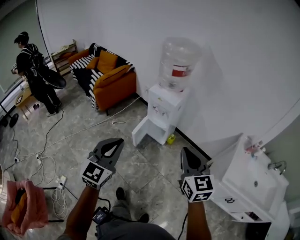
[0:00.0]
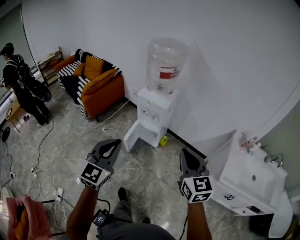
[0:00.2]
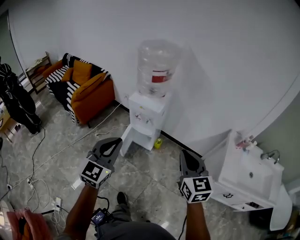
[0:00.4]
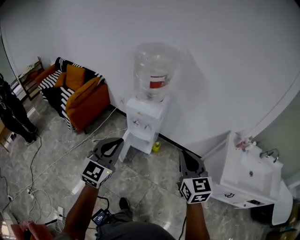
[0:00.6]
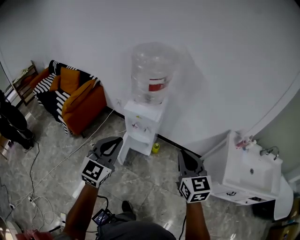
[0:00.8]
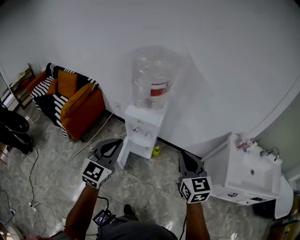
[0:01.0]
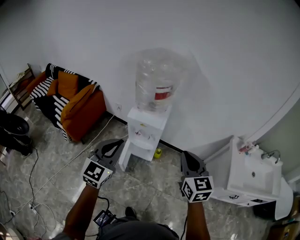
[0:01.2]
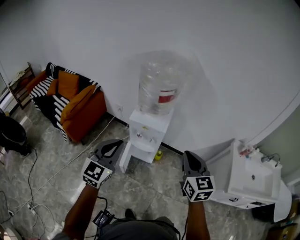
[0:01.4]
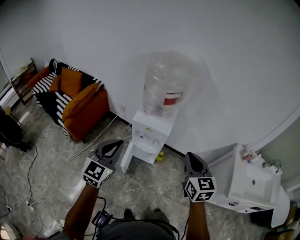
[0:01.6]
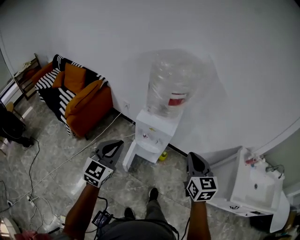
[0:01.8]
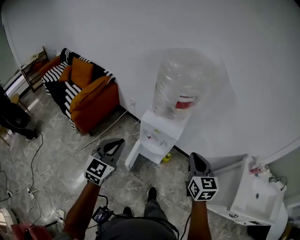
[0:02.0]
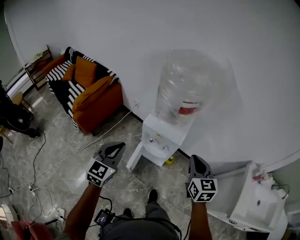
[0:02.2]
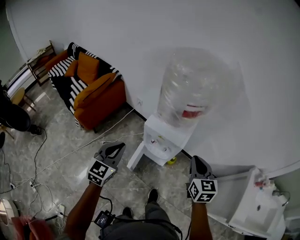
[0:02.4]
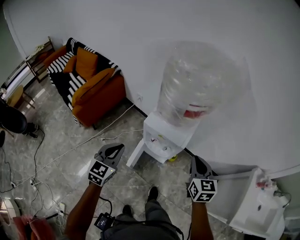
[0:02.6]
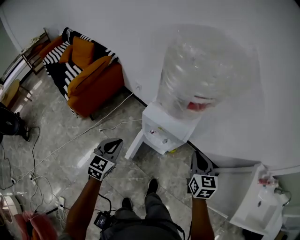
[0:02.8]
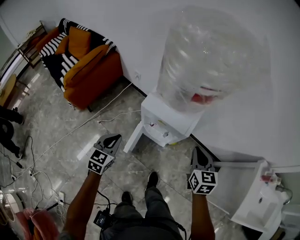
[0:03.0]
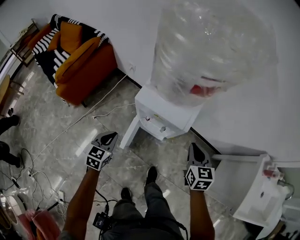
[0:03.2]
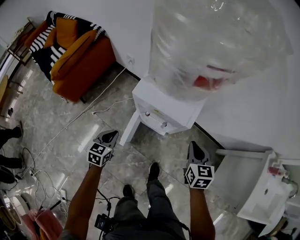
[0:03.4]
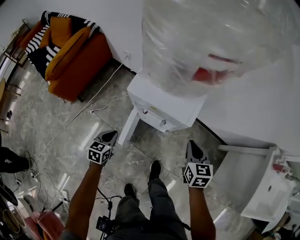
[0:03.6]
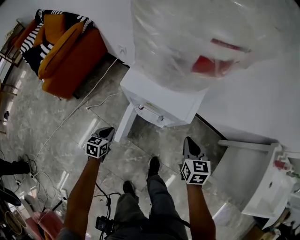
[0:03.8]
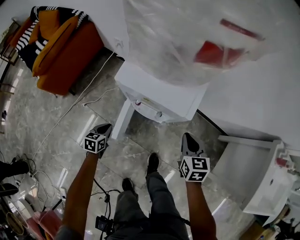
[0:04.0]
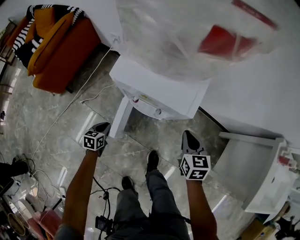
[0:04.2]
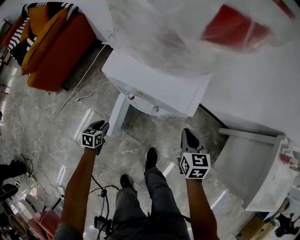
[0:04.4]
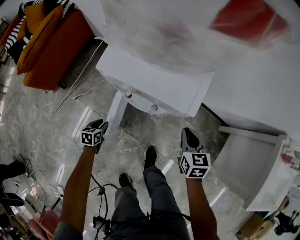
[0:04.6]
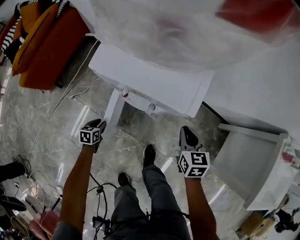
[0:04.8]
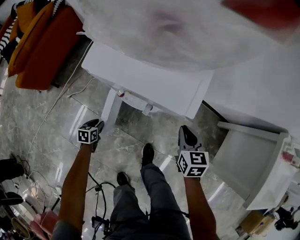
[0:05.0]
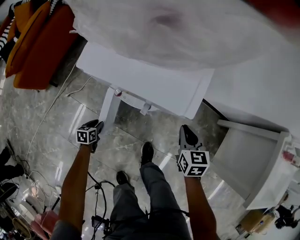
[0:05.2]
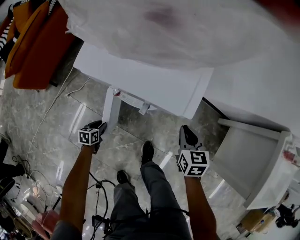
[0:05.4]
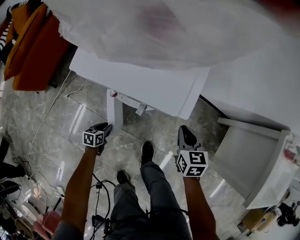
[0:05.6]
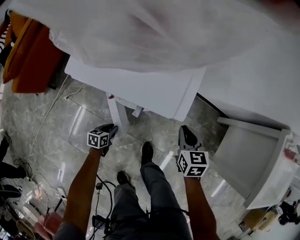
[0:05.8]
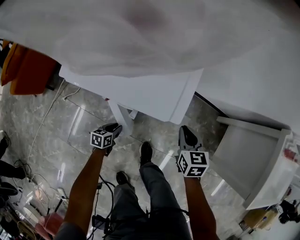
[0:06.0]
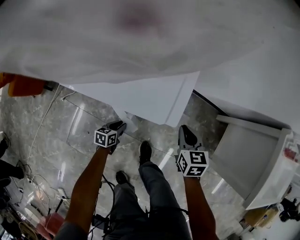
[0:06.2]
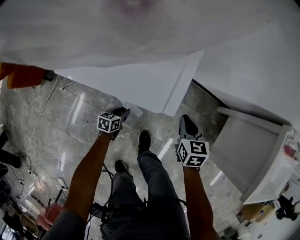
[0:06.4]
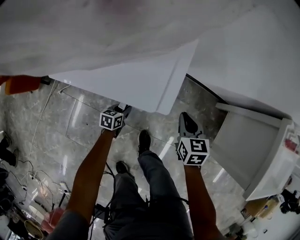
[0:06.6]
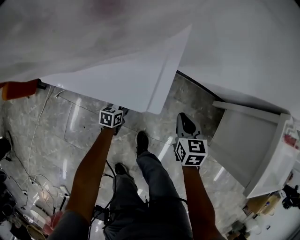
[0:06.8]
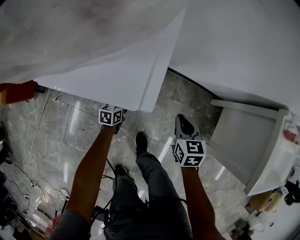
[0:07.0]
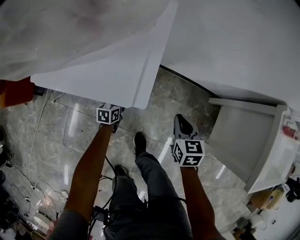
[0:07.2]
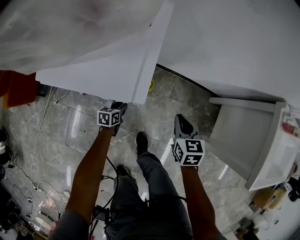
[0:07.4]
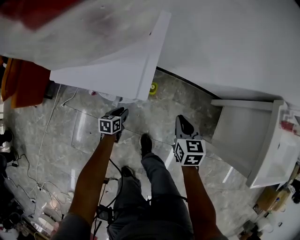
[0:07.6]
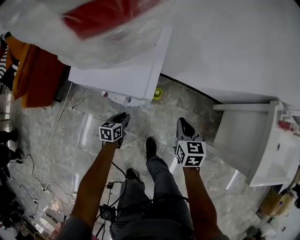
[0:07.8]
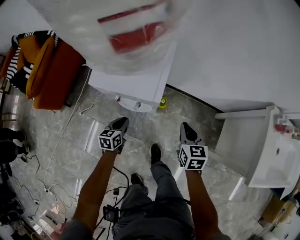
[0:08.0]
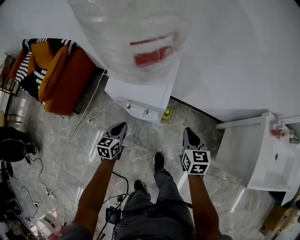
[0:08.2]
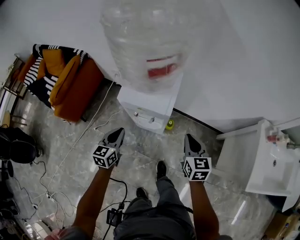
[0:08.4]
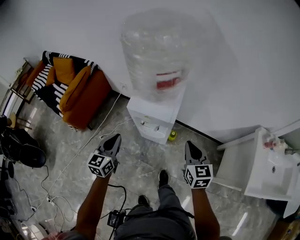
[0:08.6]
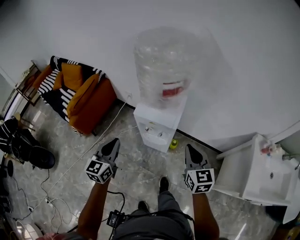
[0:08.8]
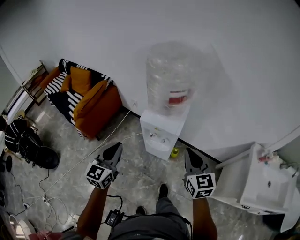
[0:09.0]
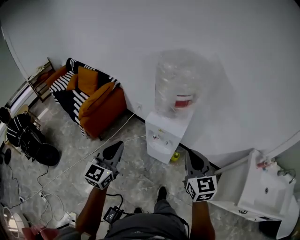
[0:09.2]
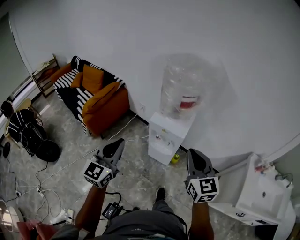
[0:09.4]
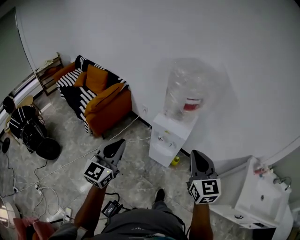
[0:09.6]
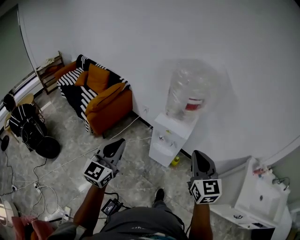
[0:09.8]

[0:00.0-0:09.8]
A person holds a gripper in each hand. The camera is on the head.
0:00.0 to 0:01.4: Both grippers travel together forward and to the left, about 25 cm. The right gripper swivels roughly 20 degrees.
0:01.4 to 0:02.8: The two grippers go approximately 25 cm downward and forward. The left gripper turns by roughly 30 degrees.
0:02.8 to 0:04.2: The right gripper is displaced downward by approximately 25 cm, while the left gripper heads downward, covering roughly 40 cm, and swivels roughly 40 degrees.
0:04.2 to 0:05.6: The right gripper shifts roughly 10 cm downward. The left gripper moves downward and to the right, roughly 15 cm, and opens up.
0:05.6 to 0:07.0: The right gripper heads to the right, covering about 5 cm, while the left gripper travels forward and to the right by approximately 20 cm.
0:07.0 to 0:08.4: The right gripper travels upward by some 25 cm; the left gripper travels upward by about 40 cm, and rotates some 30 degrees.
0:08.4 to 0:09.8: The two grippers go roughly 40 cm upward and backward. The right gripper rotates about 30 degrees, while the left gripper rotates about 30 degrees.

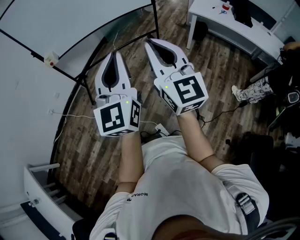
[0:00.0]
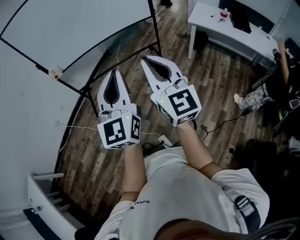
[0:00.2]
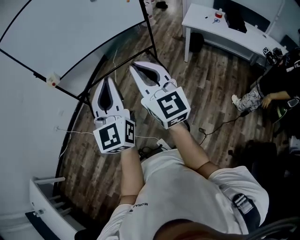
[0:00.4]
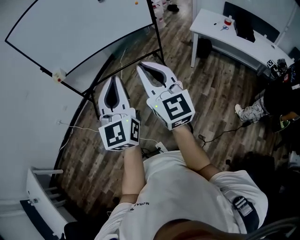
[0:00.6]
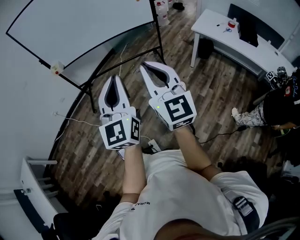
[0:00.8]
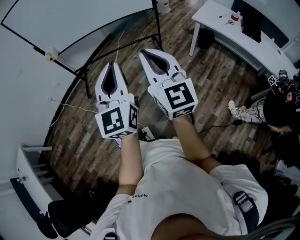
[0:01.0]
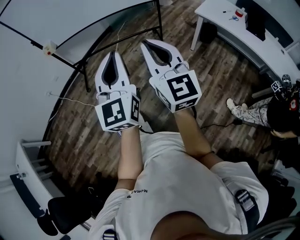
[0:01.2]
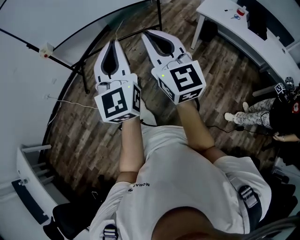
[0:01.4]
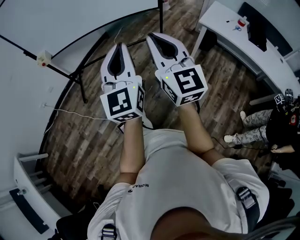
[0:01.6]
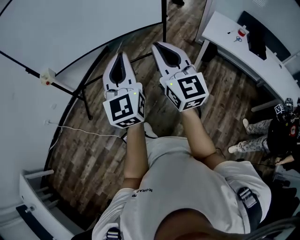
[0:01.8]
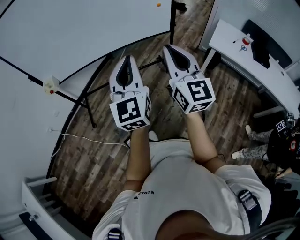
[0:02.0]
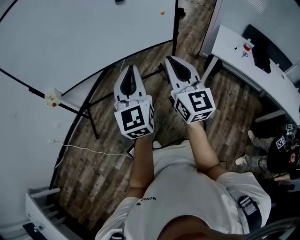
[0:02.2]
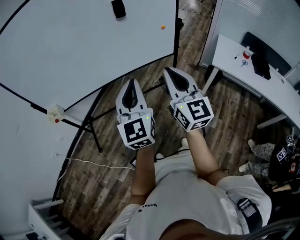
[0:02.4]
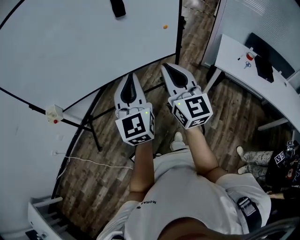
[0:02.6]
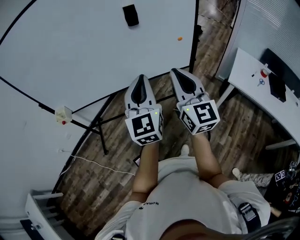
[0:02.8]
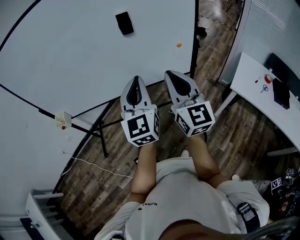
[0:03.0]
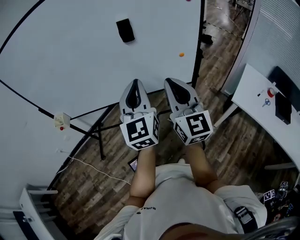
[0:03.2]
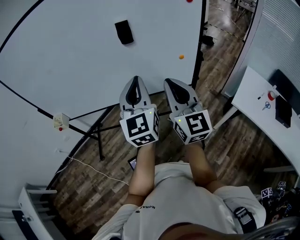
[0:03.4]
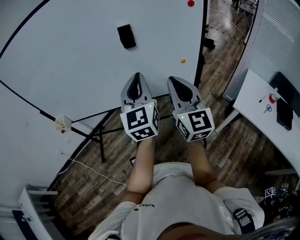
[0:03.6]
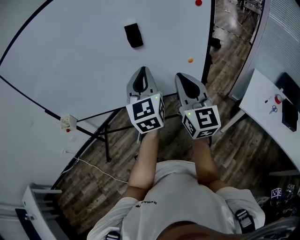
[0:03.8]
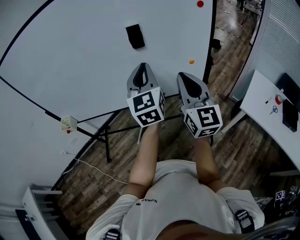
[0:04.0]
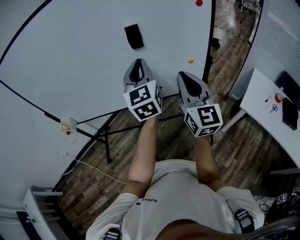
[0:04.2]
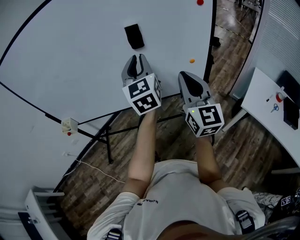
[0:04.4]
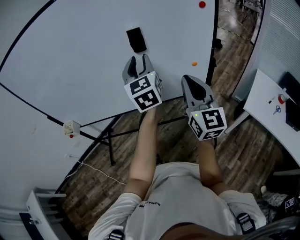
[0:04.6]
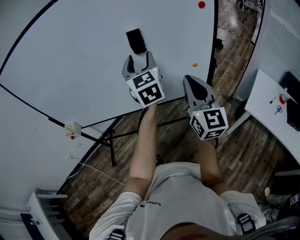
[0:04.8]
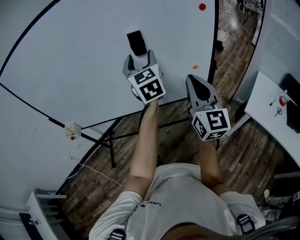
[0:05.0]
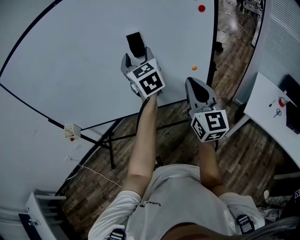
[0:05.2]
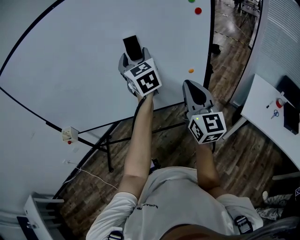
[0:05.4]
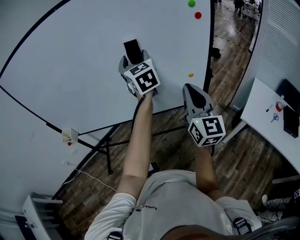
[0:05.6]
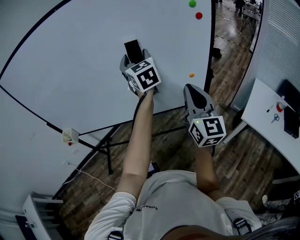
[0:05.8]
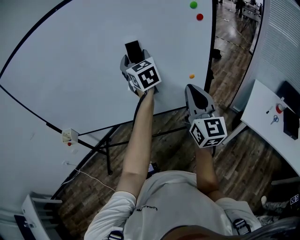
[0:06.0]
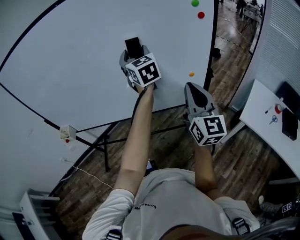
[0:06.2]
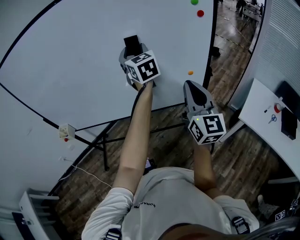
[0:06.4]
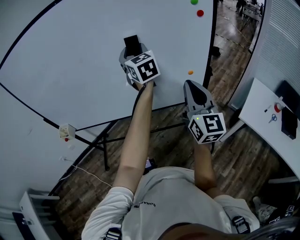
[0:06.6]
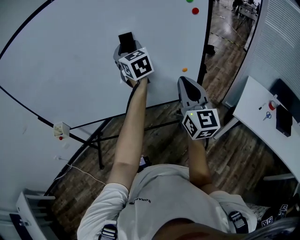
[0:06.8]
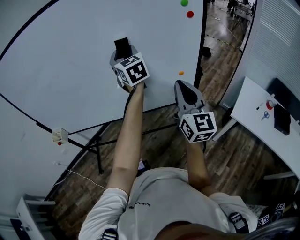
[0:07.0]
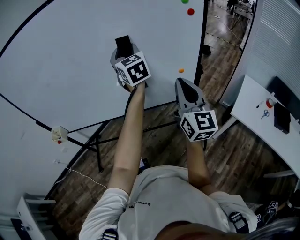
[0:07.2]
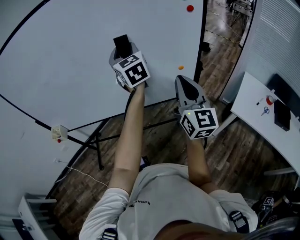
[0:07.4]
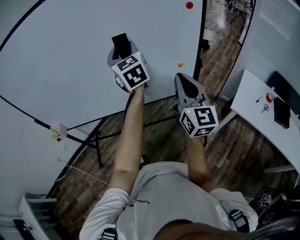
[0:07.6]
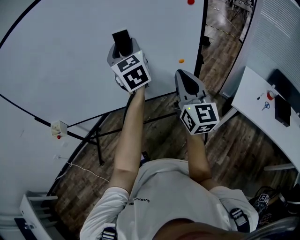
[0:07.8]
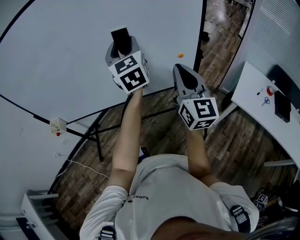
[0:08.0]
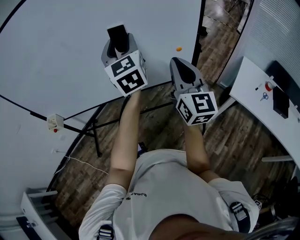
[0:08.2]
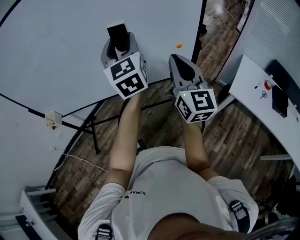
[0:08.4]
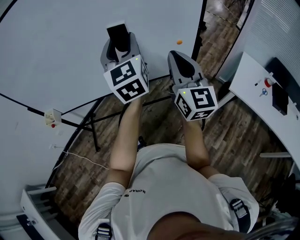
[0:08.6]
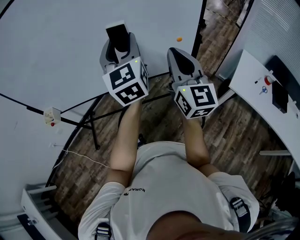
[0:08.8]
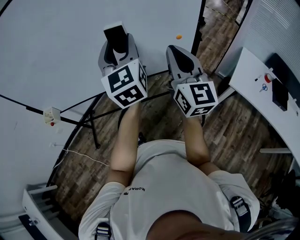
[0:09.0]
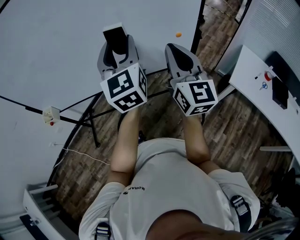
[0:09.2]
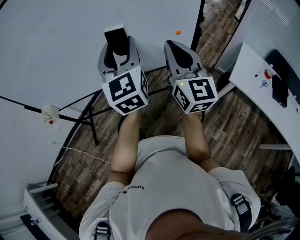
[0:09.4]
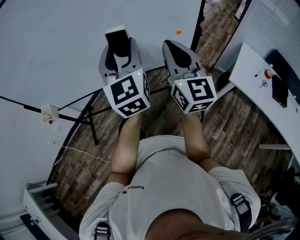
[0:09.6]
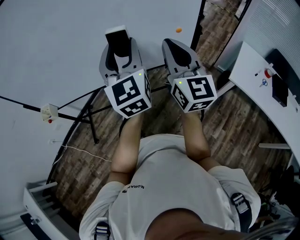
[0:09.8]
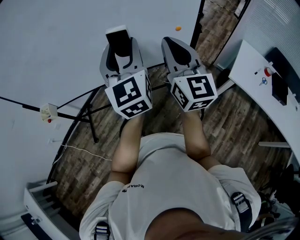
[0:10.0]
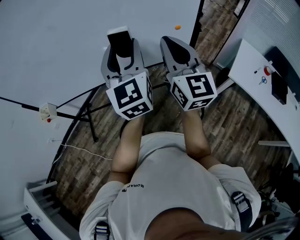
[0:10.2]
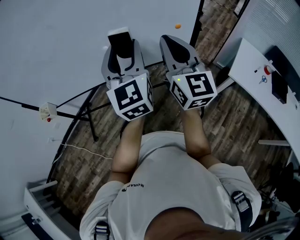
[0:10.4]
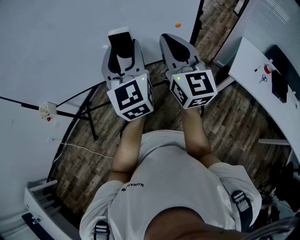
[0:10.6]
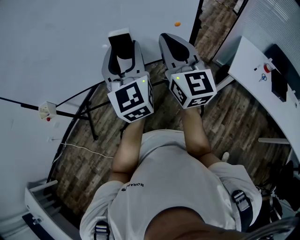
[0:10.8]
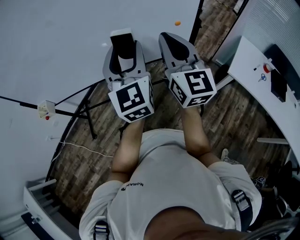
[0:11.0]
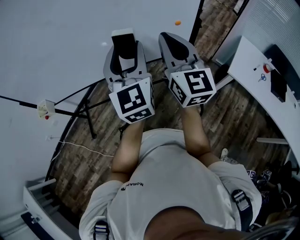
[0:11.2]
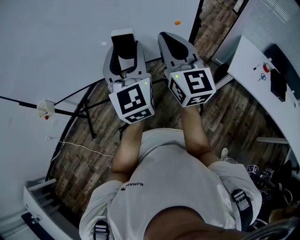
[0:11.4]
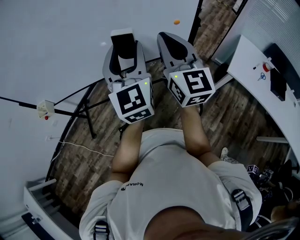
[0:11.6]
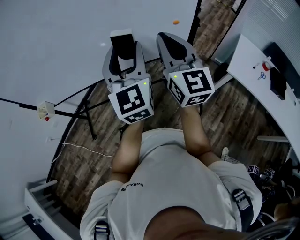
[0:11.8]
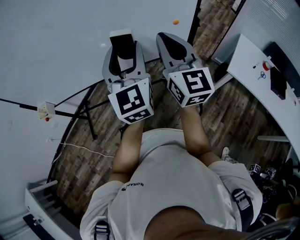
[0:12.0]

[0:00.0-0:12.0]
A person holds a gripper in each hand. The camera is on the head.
0:00.0 to 0:01.6: Both grippers move forward and to the right, some 20 cm.
0:01.6 to 0:03.0: The two grippers go roughly 40 cm forward.
0:03.0 to 0:04.4: The left gripper travels forward by approximately 15 cm. The right gripper goes about 10 cm forward.
0:04.4 to 0:06.0: The left gripper is displaced forward by approximately 10 cm, and opens up.
0:06.0 to 0:07.6: The grippers stay close to where they were, moving slightly.
0:07.6 to 0:09.0: The left gripper travels backward by approximately 10 cm.
0:09.0 to 0:10.4: The left gripper moves about 5 cm.
0:10.4 to 0:12.0: The grippers stay close to where they were, moving slightly.

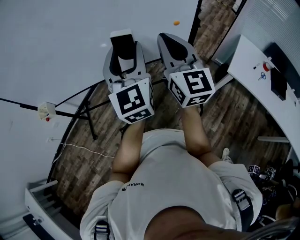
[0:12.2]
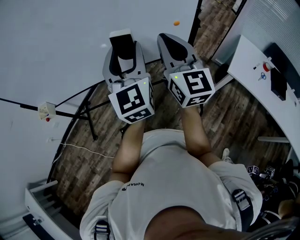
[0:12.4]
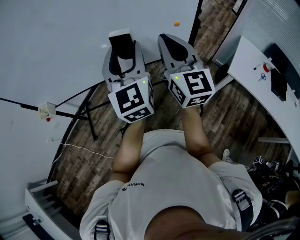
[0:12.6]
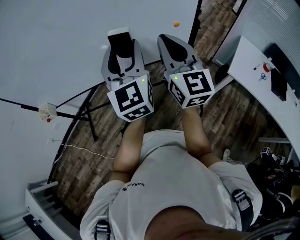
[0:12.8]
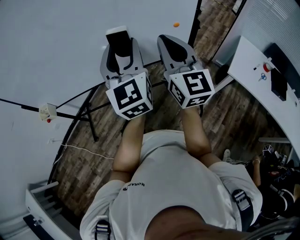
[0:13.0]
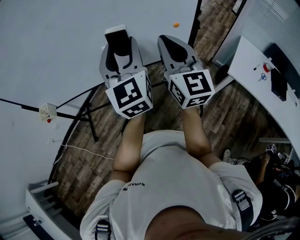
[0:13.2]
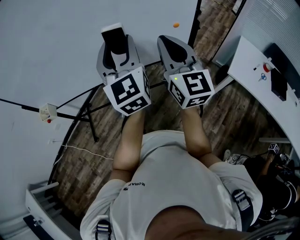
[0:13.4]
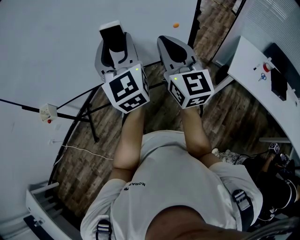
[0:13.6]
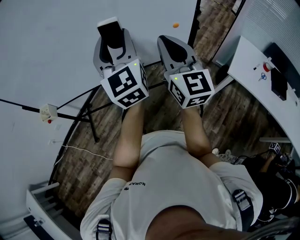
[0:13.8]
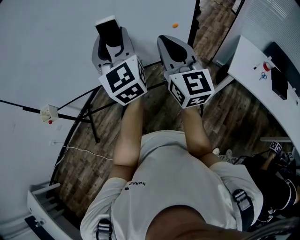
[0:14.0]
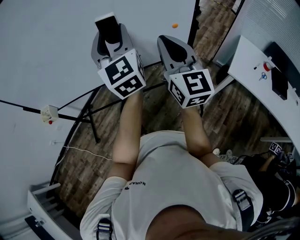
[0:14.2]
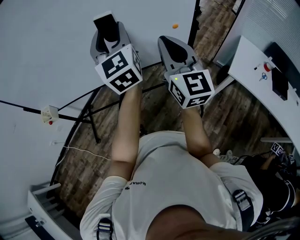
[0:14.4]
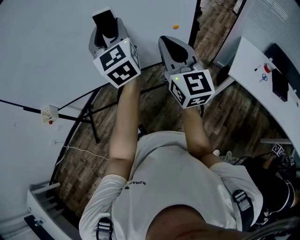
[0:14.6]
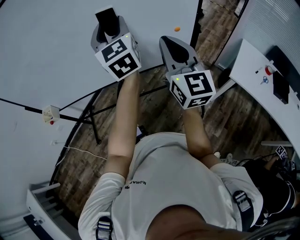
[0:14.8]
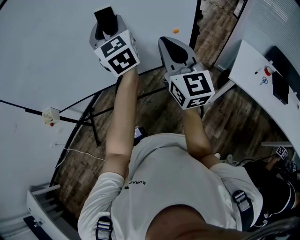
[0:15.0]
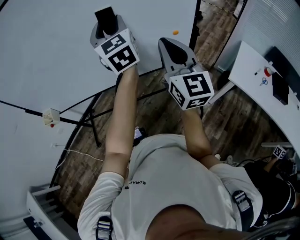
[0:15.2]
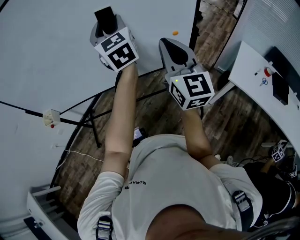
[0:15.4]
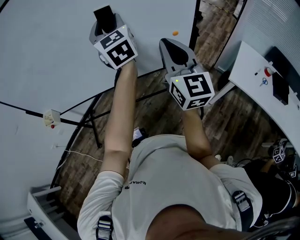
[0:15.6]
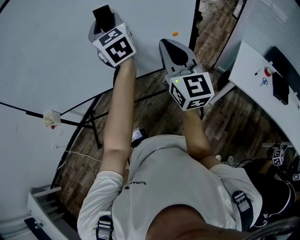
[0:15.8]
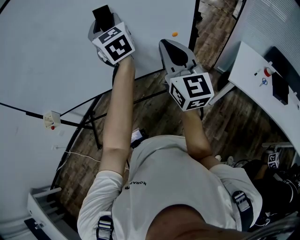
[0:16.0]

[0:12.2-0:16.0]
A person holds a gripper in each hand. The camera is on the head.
0:12.2 to 0:13.4: The grippers stay close to where they were, moving slightly.
0:13.4 to 0:14.8: The left gripper heads forward, covering about 10 cm.
0:14.8 to 0:16.0: The left gripper travels forward by some 5 cm.
